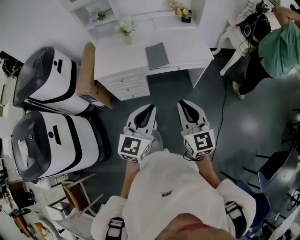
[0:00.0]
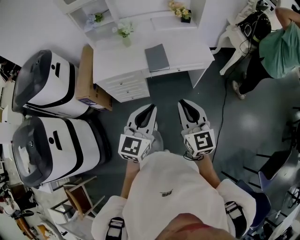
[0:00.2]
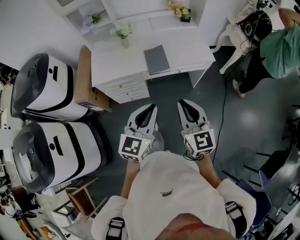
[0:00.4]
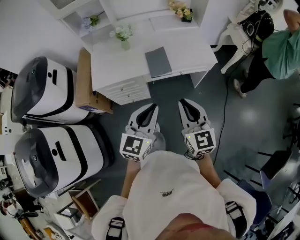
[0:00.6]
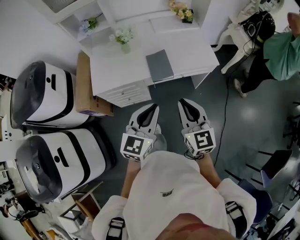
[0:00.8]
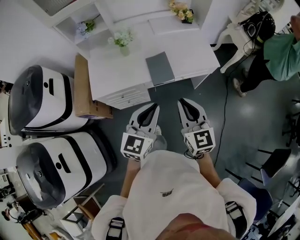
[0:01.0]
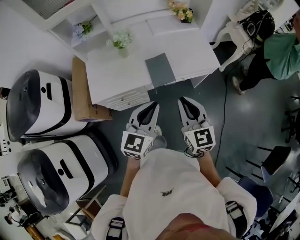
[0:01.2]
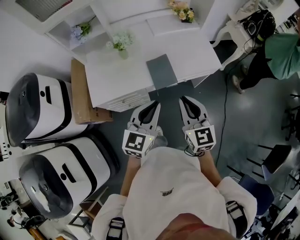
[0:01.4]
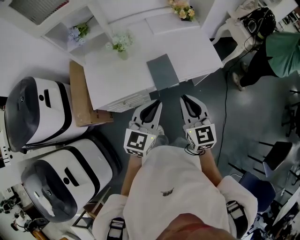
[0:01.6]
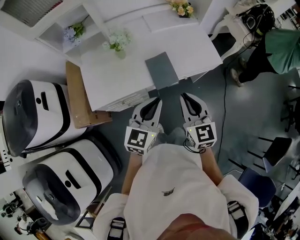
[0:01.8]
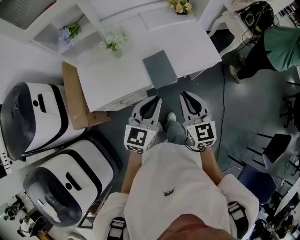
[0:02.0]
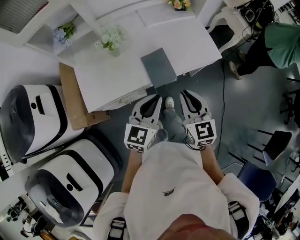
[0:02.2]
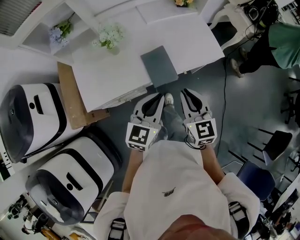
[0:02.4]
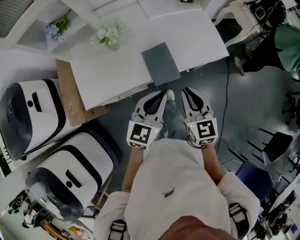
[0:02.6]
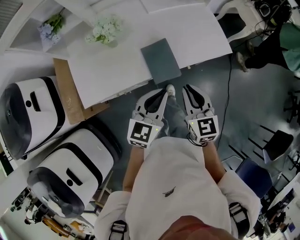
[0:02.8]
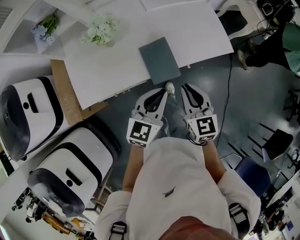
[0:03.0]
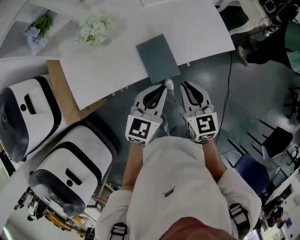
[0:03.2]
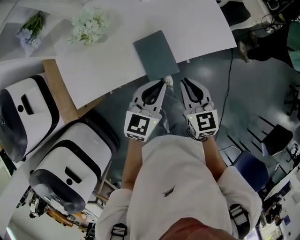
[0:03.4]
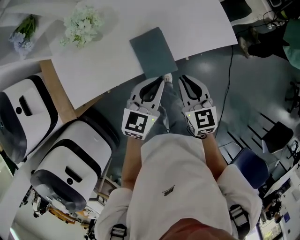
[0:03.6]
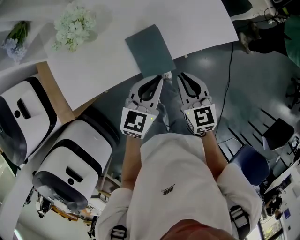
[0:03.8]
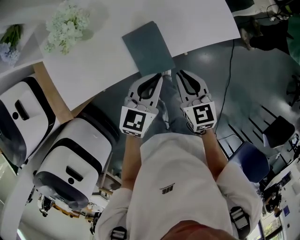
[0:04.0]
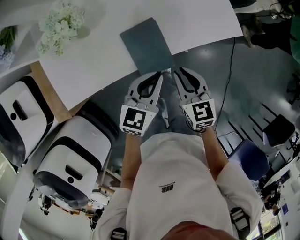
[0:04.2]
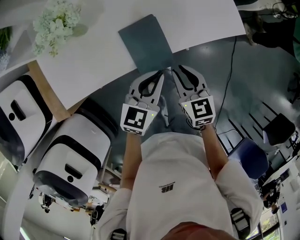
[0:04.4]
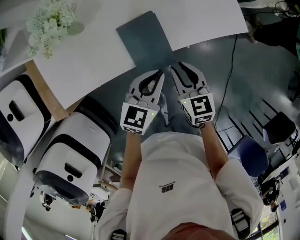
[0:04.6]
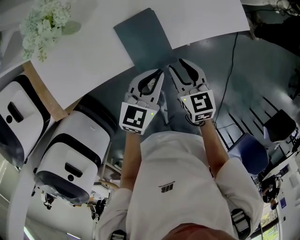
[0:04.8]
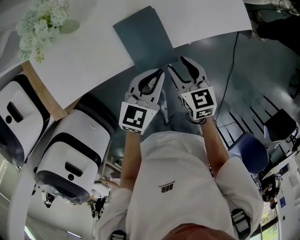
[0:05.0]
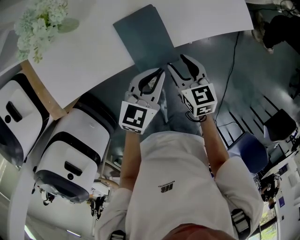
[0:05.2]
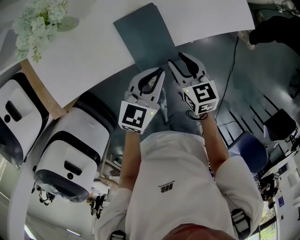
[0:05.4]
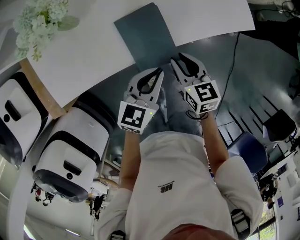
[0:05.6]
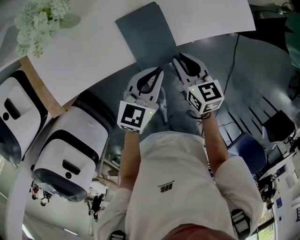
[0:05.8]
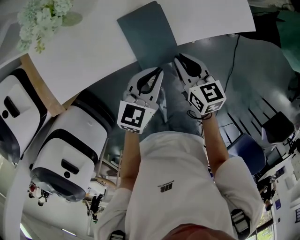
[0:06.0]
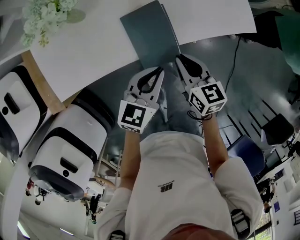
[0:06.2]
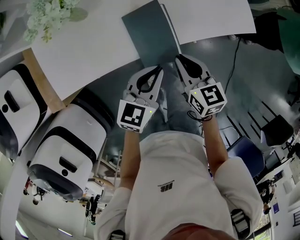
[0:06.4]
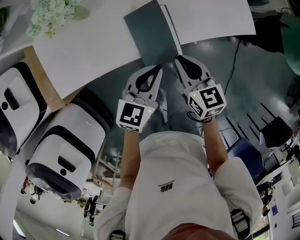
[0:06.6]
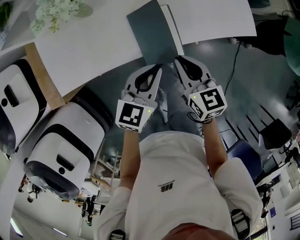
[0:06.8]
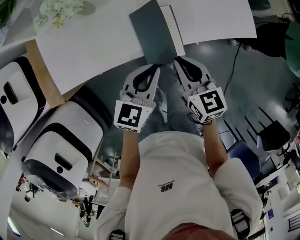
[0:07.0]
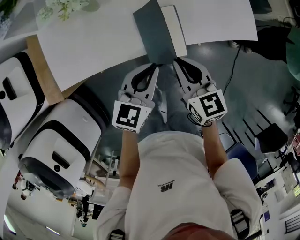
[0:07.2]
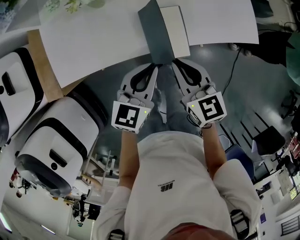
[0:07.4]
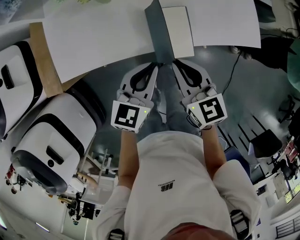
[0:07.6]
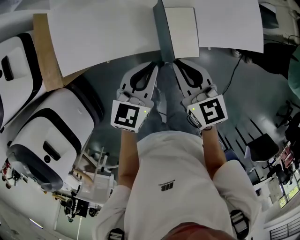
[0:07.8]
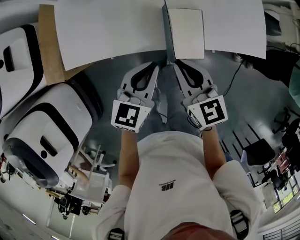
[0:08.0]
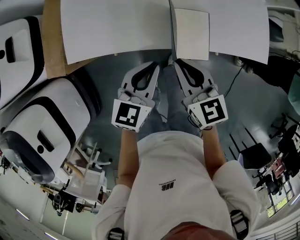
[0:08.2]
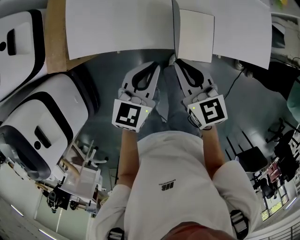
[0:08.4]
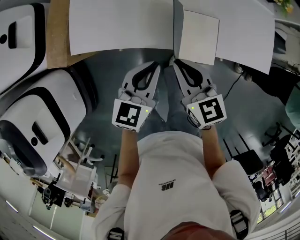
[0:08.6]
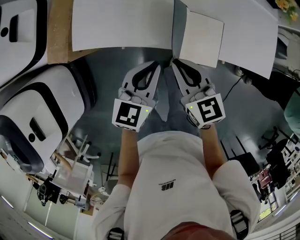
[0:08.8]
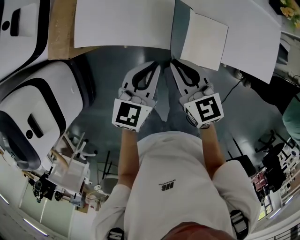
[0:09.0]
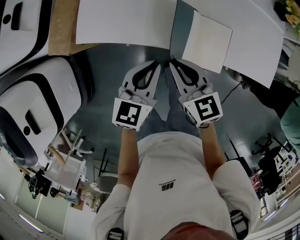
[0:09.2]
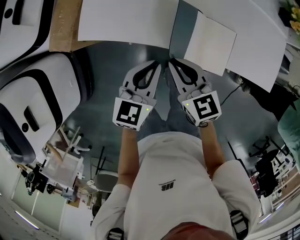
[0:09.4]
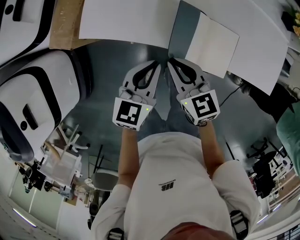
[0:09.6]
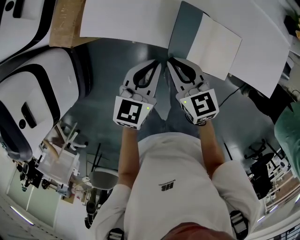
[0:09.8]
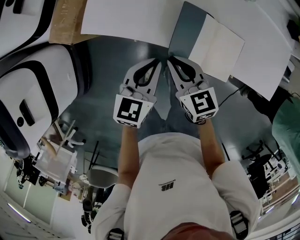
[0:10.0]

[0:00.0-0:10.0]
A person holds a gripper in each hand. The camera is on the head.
0:00.0 to 0:01.4: Both grippers travel together forward, about 25 cm.
0:01.4 to 0:02.8: The left gripper moves forward and downward, some 15 cm. The right gripper travels downward and forward by approximately 15 cm.
0:02.8 to 0:04.2: Both grippers travel together downward and forward, some 15 cm.
0:04.2 to 0:05.8: The two grippers go roughly 5 cm downward. The right gripper opens, then closes once more.
0:05.8 to 0:07.2: The right gripper travels upward and to the left by about 10 cm. Meanwhile the left gripper heads to the left, covering some 5 cm.
0:07.2 to 0:08.6: The two grippers go approximately 15 cm to the left.
0:08.6 to 0:10.0: The left gripper goes approximately 5 cm to the left. The right gripper goes about 10 cm to the left and downward.

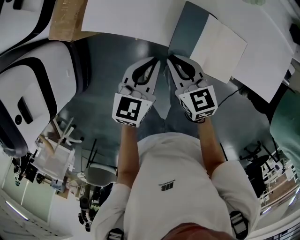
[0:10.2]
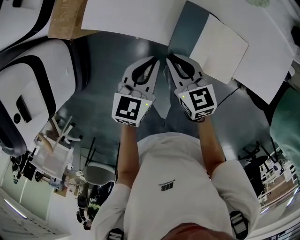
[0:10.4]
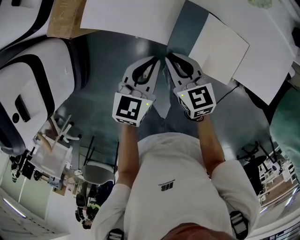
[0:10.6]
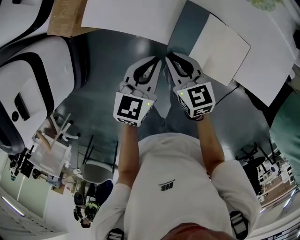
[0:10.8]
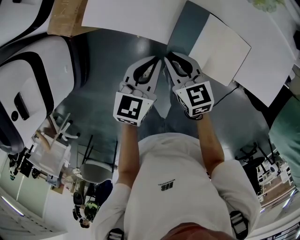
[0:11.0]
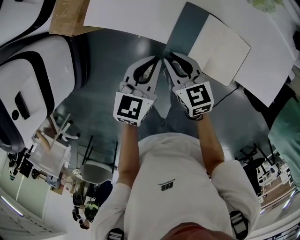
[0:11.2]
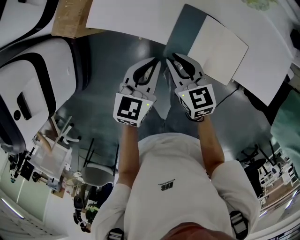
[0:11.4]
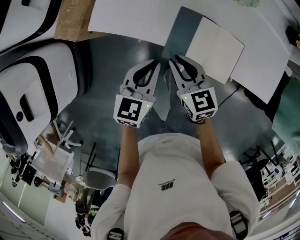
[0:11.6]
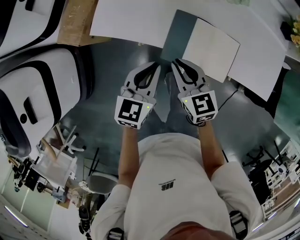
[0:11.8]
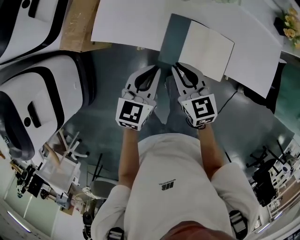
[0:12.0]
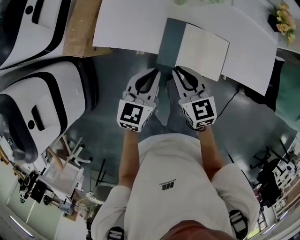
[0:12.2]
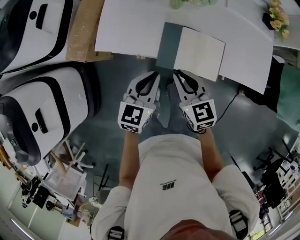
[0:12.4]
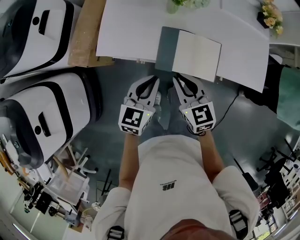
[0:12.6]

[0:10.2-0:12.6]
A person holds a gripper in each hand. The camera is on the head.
0:10.2 to 0:11.4: The grippers stay close to where they were, moving slightly.
0:11.4 to 0:12.6: Both grippers travel together upward, approximately 10 cm.

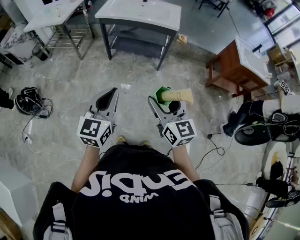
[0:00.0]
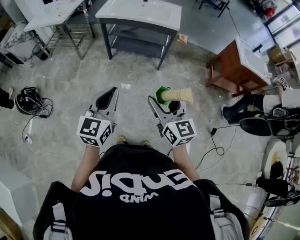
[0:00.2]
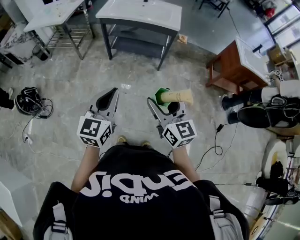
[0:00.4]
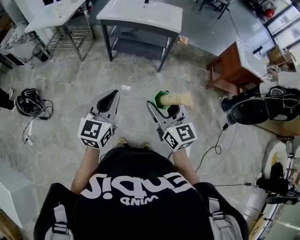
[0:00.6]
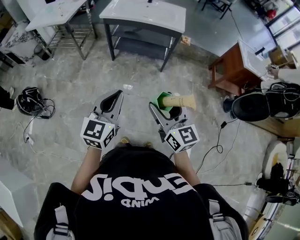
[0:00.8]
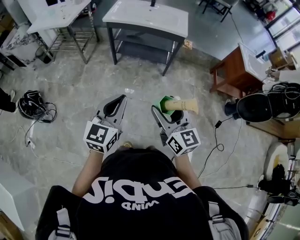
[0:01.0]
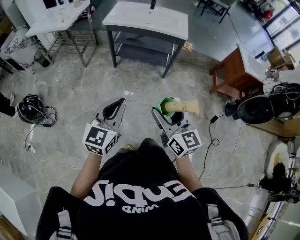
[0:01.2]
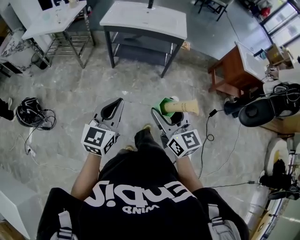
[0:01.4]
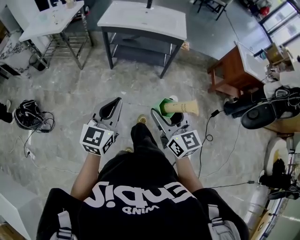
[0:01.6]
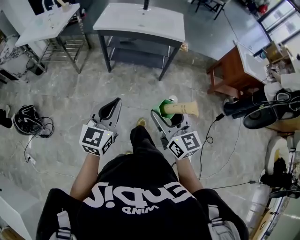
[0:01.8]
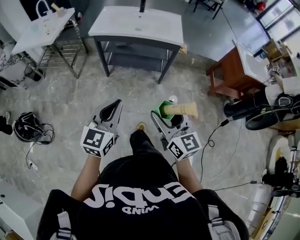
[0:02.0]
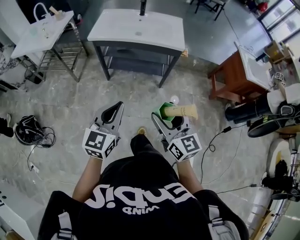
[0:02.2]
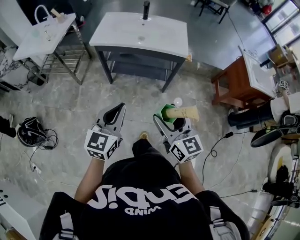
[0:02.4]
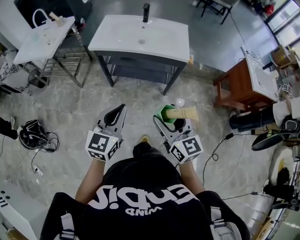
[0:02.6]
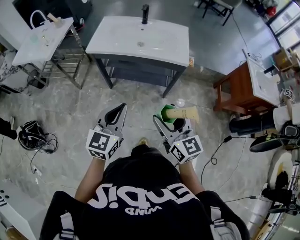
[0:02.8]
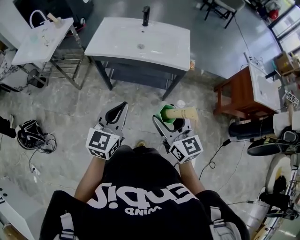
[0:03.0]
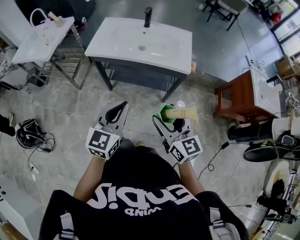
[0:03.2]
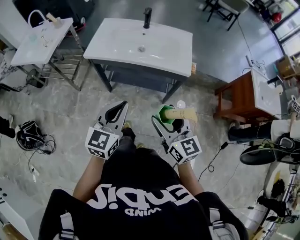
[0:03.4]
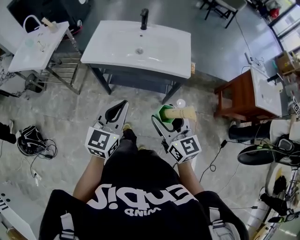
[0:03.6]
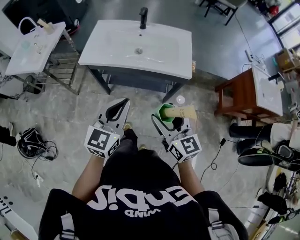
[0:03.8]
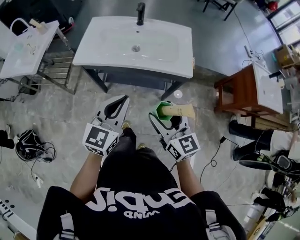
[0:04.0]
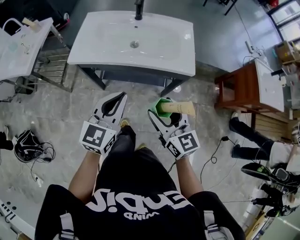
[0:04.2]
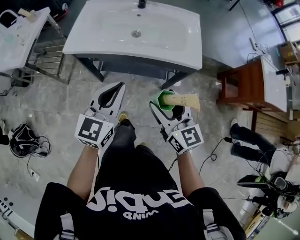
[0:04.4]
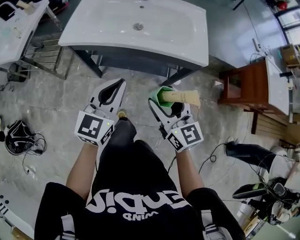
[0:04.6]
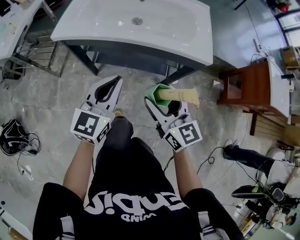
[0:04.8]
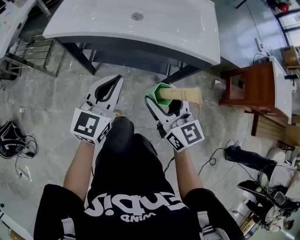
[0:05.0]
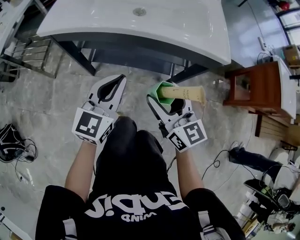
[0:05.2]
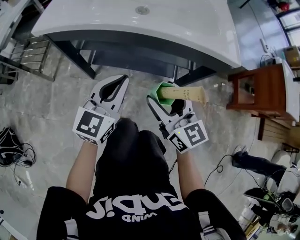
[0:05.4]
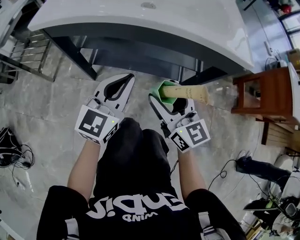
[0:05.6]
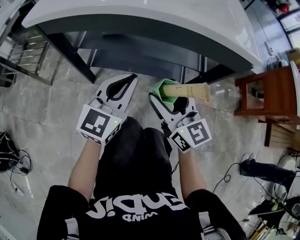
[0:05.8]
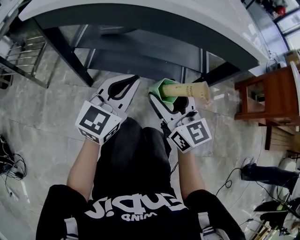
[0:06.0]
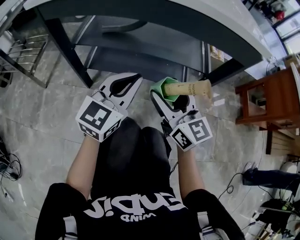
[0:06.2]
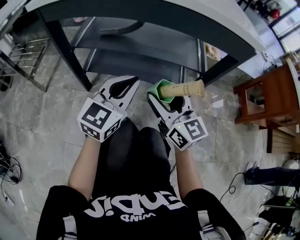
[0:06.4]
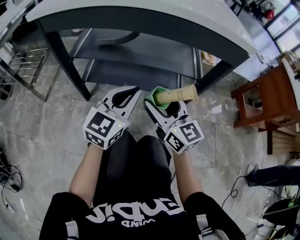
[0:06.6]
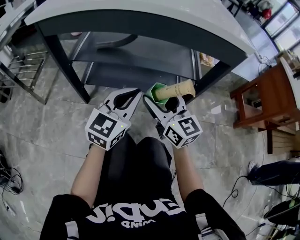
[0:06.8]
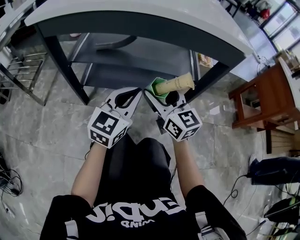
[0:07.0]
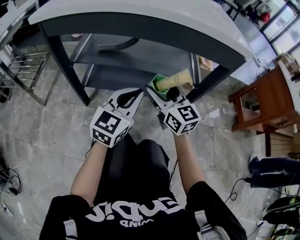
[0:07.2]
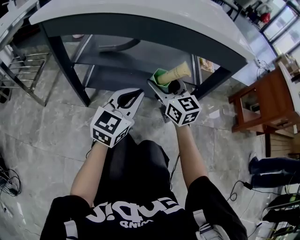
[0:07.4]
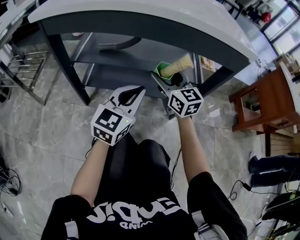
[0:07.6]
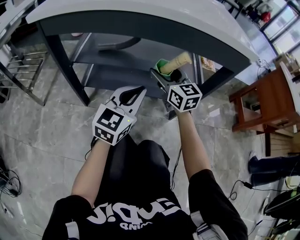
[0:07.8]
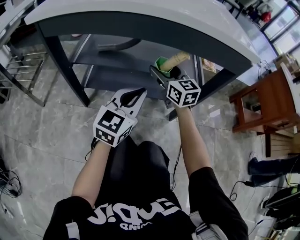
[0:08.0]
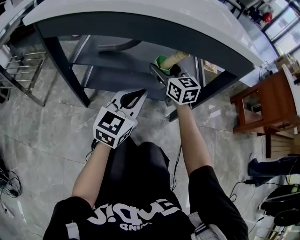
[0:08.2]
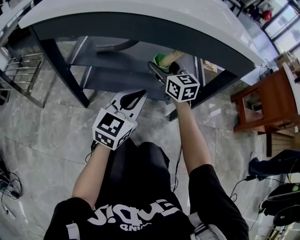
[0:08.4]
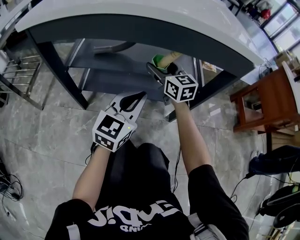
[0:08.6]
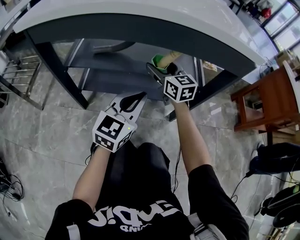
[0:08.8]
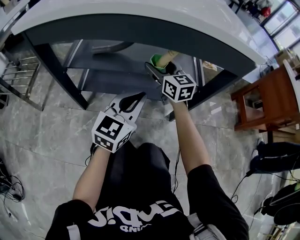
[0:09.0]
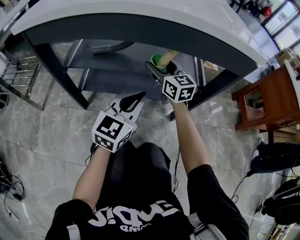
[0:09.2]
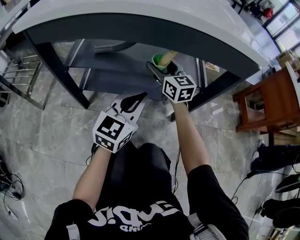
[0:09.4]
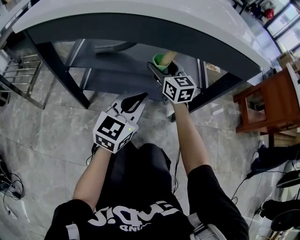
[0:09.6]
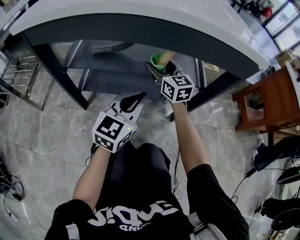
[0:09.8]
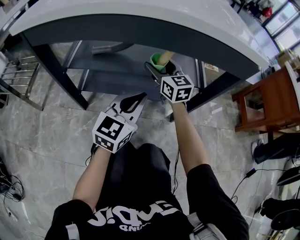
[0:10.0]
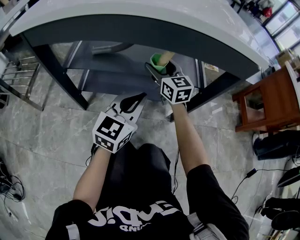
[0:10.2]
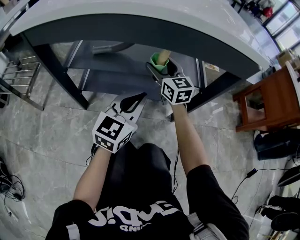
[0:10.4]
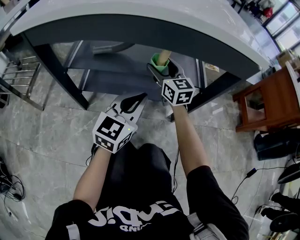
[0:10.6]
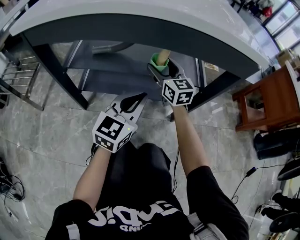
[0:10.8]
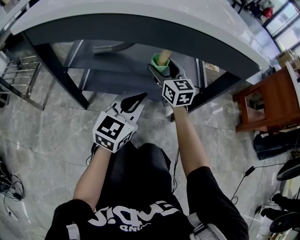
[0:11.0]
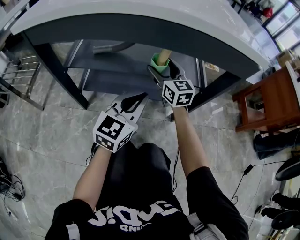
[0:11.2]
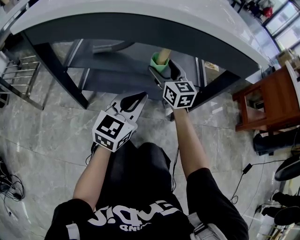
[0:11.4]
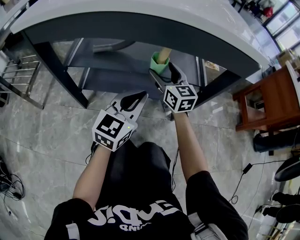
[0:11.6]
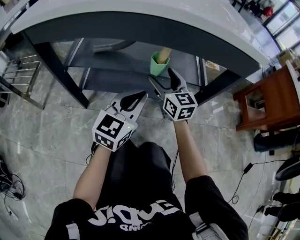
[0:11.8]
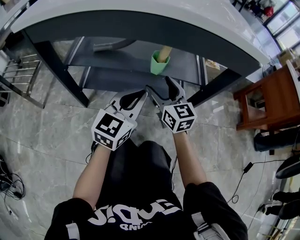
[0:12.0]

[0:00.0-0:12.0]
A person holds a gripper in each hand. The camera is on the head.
0:00.0 to 0:01.6: The right gripper travels to the left and forward by about 10 cm. Meanwhile the left gripper travels forward and to the left by some 10 cm.
0:01.6 to 0:03.0: The grippers both shift forward by roughly 30 cm.
0:03.0 to 0:04.4: The right gripper travels forward and downward by about 20 cm, while the left gripper is displaced forward by approximately 20 cm.
0:04.4 to 0:06.0: The grippers both shift downward by approximately 35 cm.
0:06.0 to 0:07.6: The left gripper shifts by about 5 cm; the right gripper shifts about 15 cm forward.
0:07.6 to 0:09.0: The right gripper moves forward, roughly 10 cm.
0:09.0 to 0:10.4: The grippers move only a little.
0:10.4 to 0:12.0: The right gripper shifts approximately 10 cm backward.
